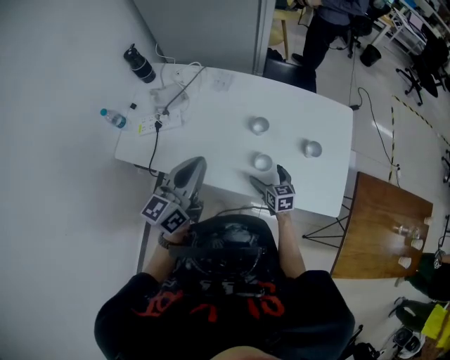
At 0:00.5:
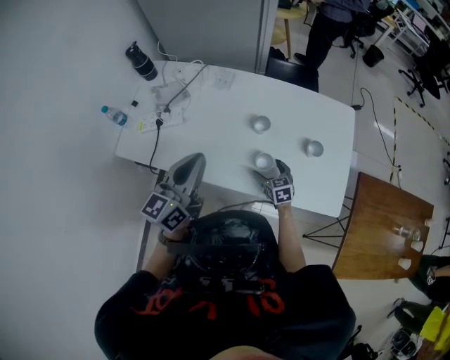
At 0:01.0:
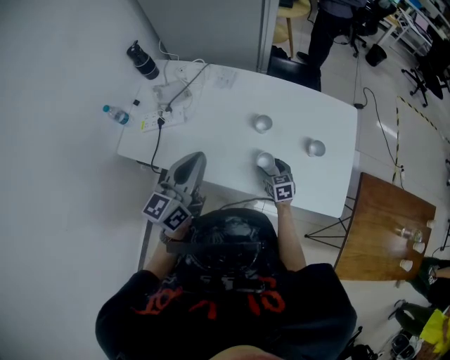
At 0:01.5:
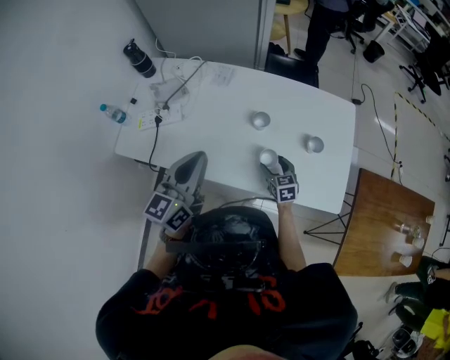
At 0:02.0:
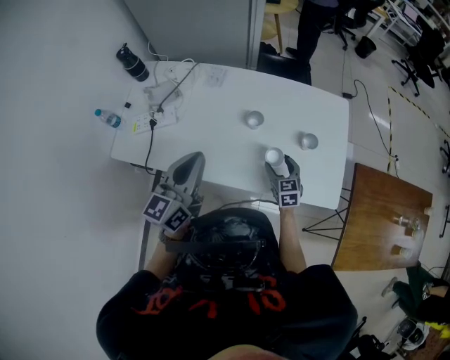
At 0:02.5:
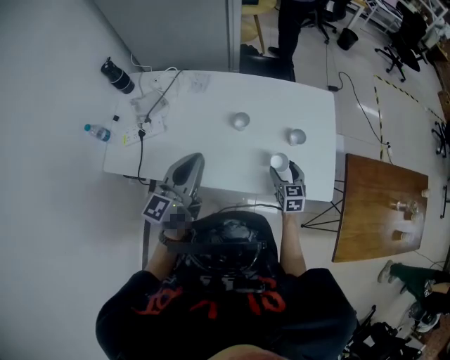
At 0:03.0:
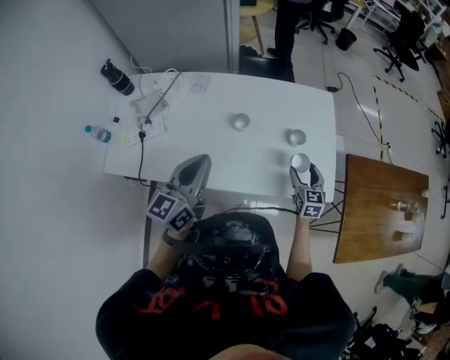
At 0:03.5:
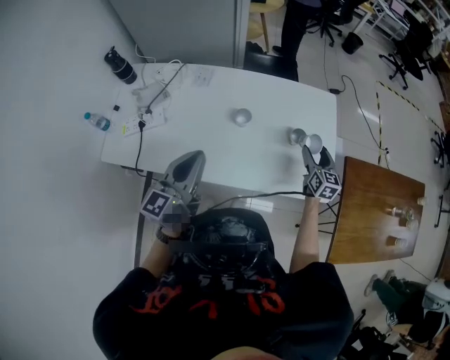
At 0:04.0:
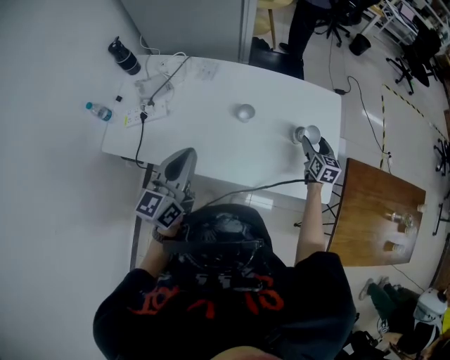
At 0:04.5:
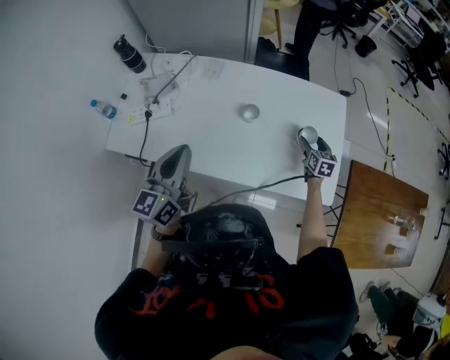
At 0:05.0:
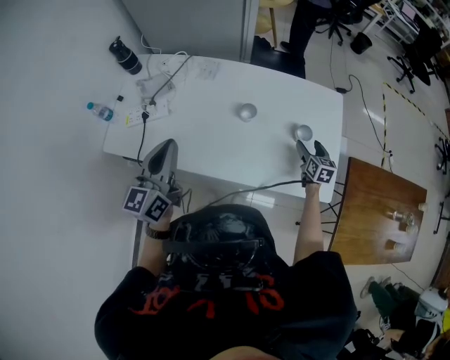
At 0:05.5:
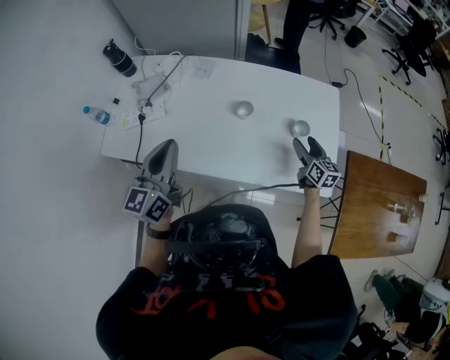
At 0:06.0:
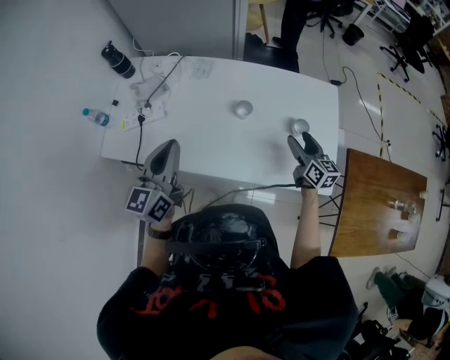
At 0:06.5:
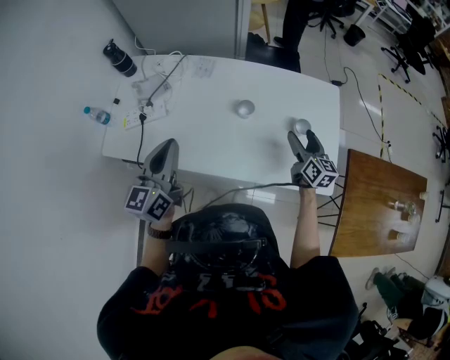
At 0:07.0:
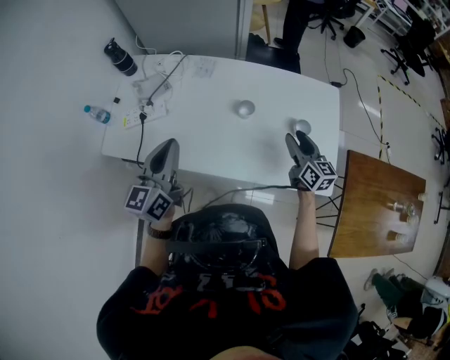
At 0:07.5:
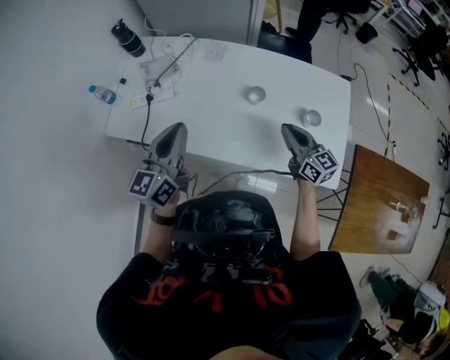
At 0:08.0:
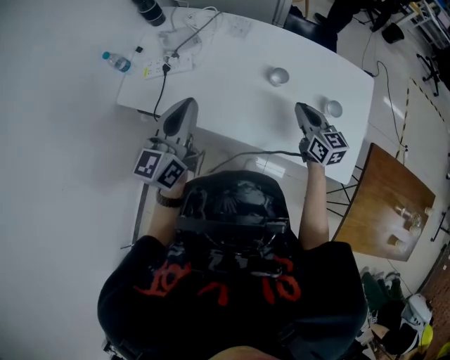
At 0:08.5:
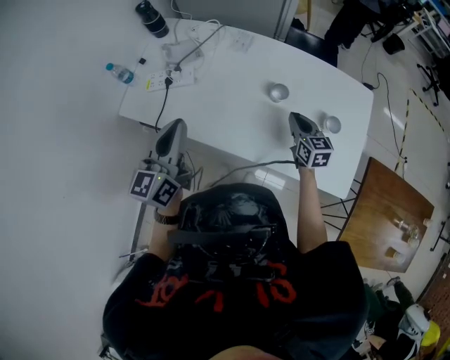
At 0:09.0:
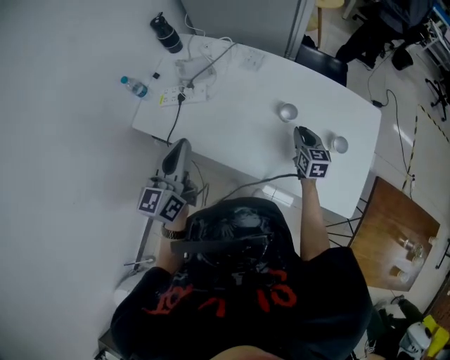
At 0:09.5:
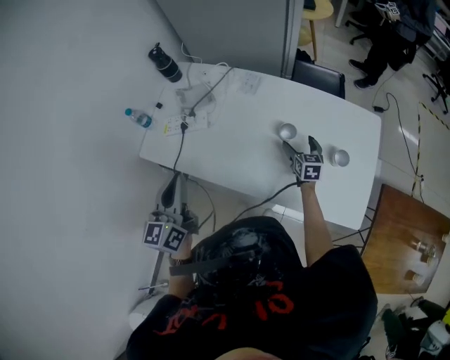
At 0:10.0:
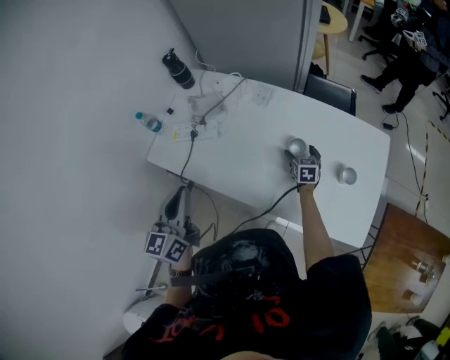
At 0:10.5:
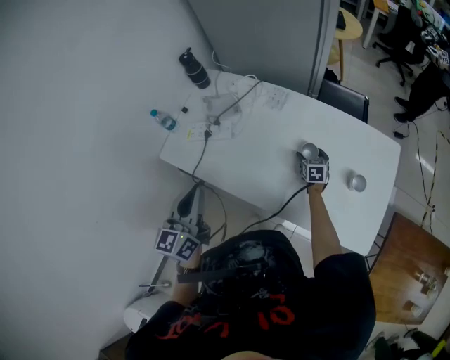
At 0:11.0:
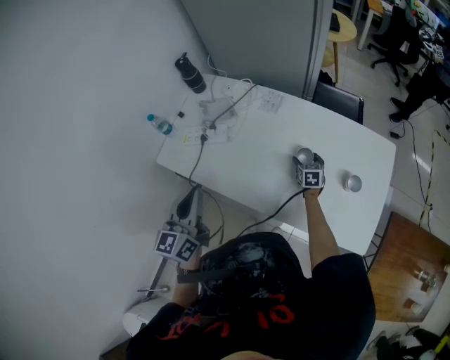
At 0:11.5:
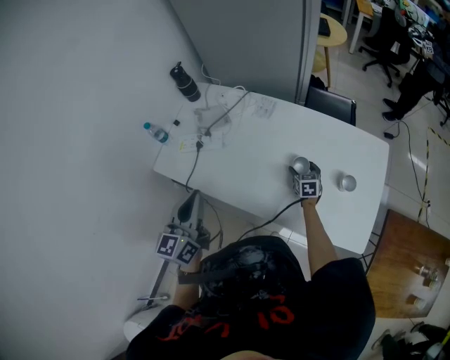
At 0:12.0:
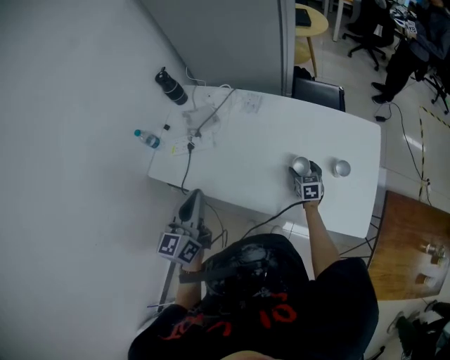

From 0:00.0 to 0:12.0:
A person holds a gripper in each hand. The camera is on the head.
From 0:00.0 to 0:02.0: The right gripper goes approximately 5 cm to the right, and closes up.
From 0:02.0 to 0:04.0: The right gripper shifts roughly 20 cm to the right and forward.
From 0:04.0 to 0:06.0: The right gripper moves to the left and upward, roughly 10 cm, and turns by roughly 20 degrees.
From 0:06.0 to 0:08.0: The right gripper moves to the left, approximately 15 cm, and closes its fingers.
From 0:08.0 to 0:10.0: The left gripper goes about 5 cm to the left; the right gripper is displaced downward and forward by some 25 cm, swivels about 30 degrees, and opens its fingers.
From 0:10.0 to 0:12.0: The right gripper travels backward by about 10 cm.

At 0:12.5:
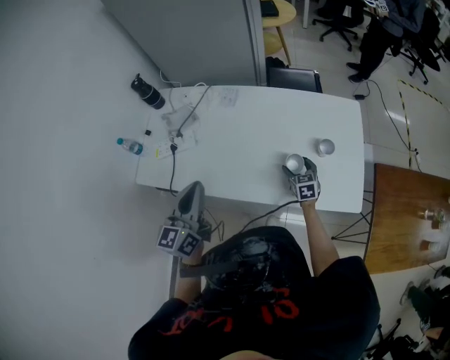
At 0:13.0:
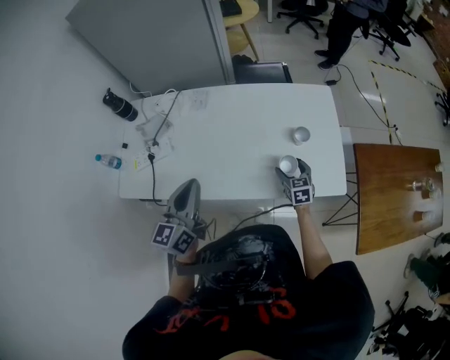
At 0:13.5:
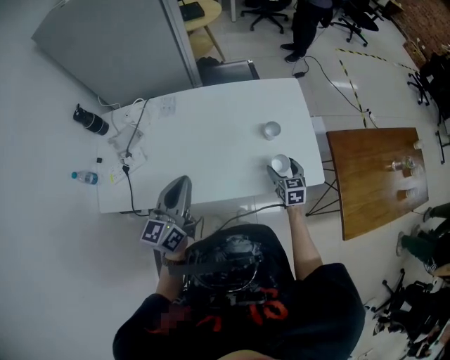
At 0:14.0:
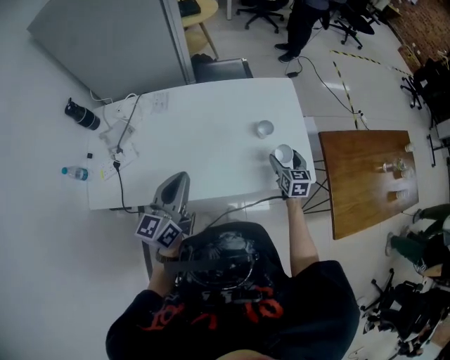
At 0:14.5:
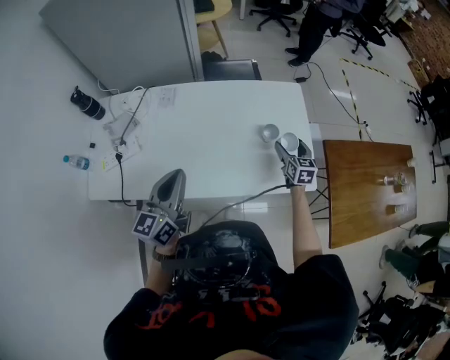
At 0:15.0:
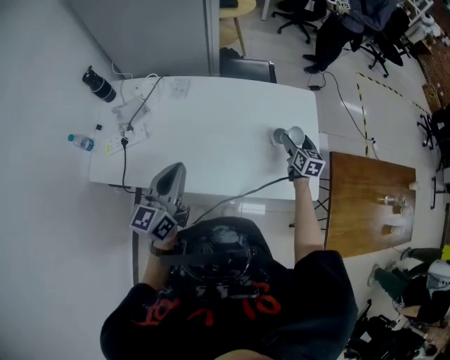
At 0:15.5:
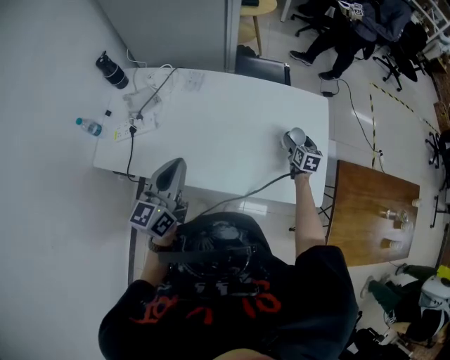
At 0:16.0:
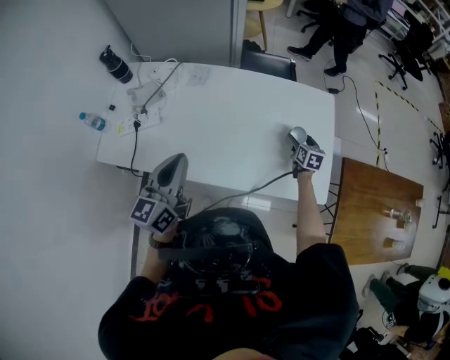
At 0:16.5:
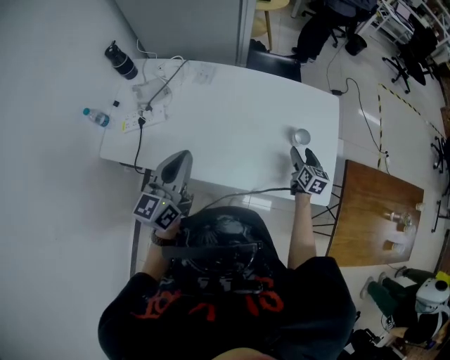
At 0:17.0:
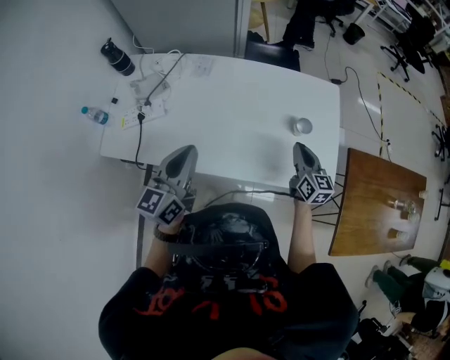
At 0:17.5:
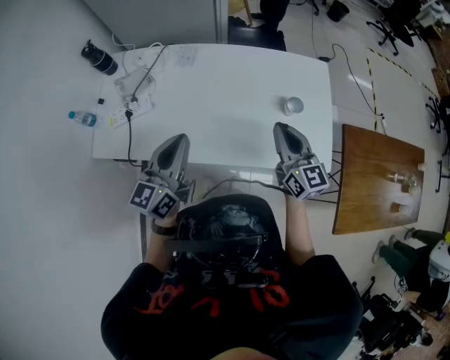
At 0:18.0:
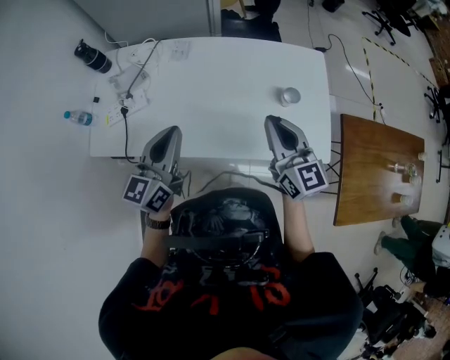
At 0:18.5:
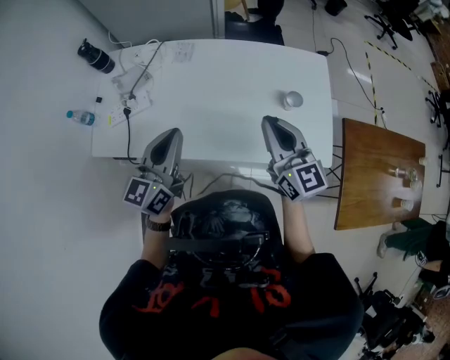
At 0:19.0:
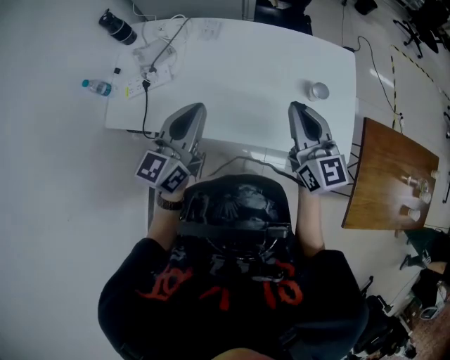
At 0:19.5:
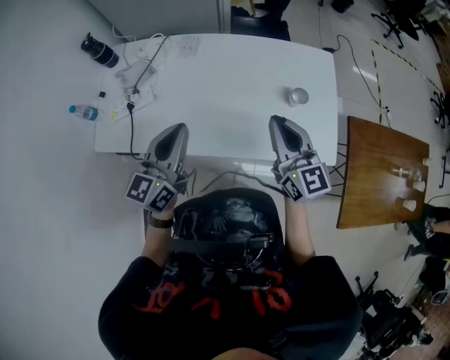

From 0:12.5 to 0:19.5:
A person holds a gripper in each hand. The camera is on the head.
From 0:12.5 to 0:14.5: The left gripper heads to the right, covering roughly 10 cm; the right gripper shifts about 20 cm to the right and upward, and changes its angle by some 20 degrees.
From 0:14.5 to 0:16.0: The right gripper heads downward and forward, covering approximately 10 cm.
From 0:16.0 to 0:17.5: The right gripper travels upward, backward and to the left by roughly 35 cm, tips its fingers upward by some 30 degrees, and closes up.
From 0:17.5 to 0:19.5: The right gripper moves about 5 cm.

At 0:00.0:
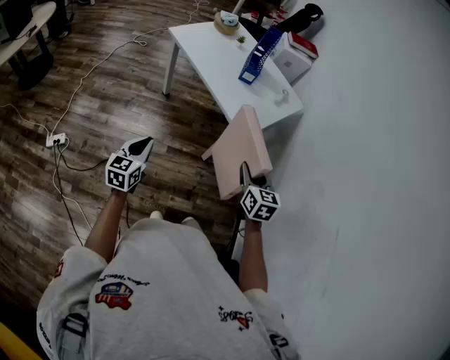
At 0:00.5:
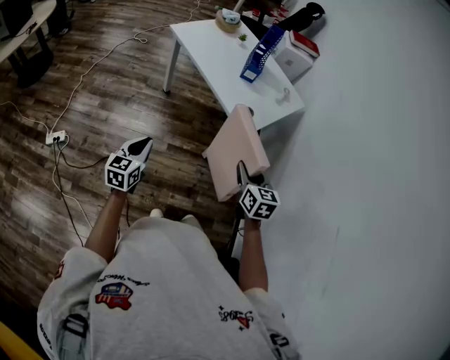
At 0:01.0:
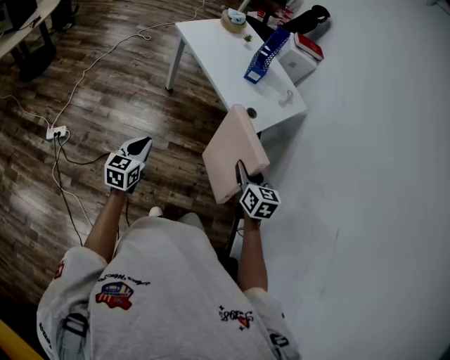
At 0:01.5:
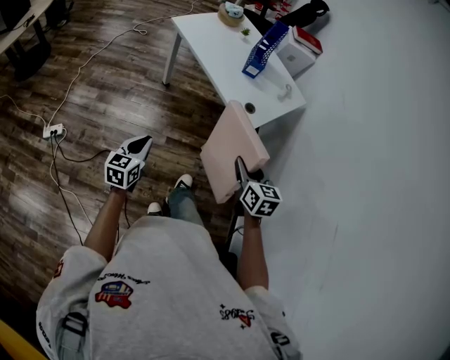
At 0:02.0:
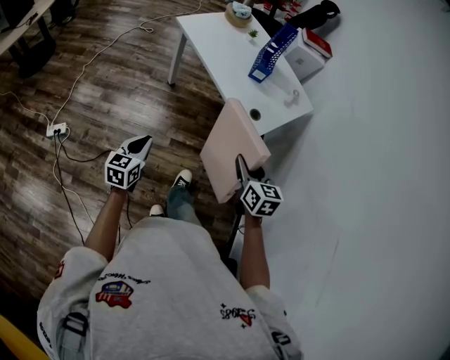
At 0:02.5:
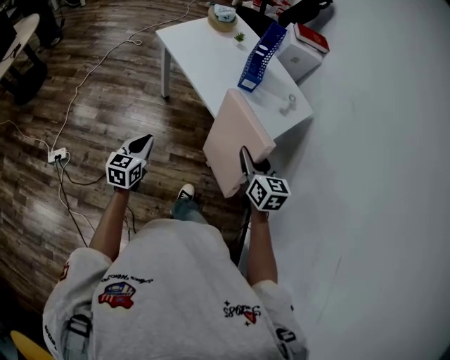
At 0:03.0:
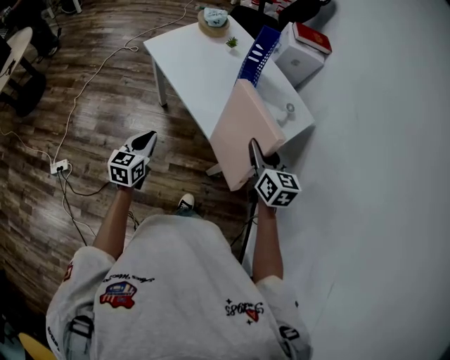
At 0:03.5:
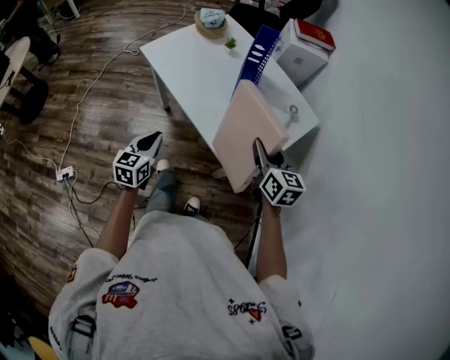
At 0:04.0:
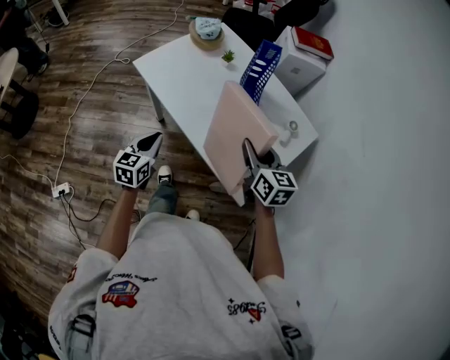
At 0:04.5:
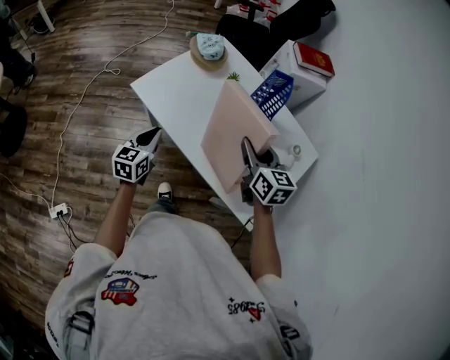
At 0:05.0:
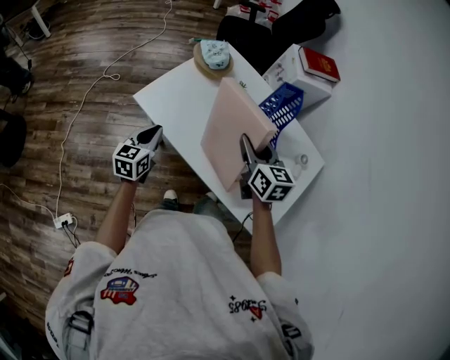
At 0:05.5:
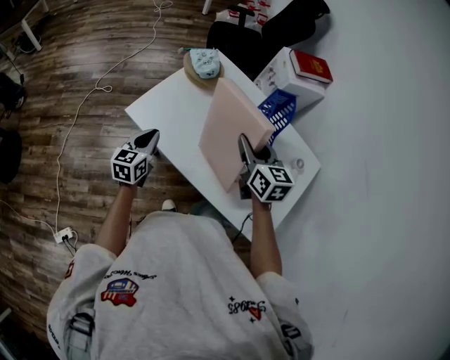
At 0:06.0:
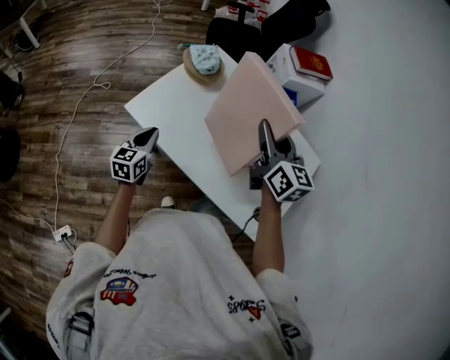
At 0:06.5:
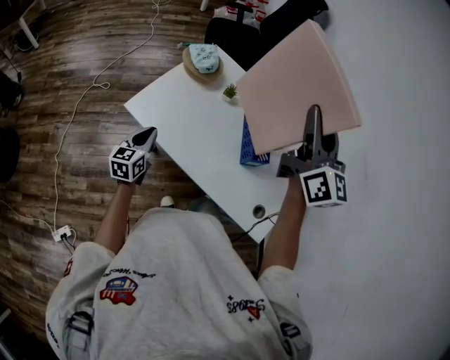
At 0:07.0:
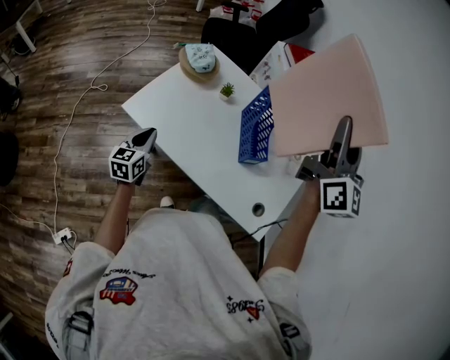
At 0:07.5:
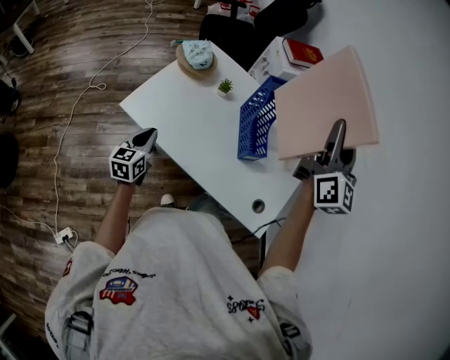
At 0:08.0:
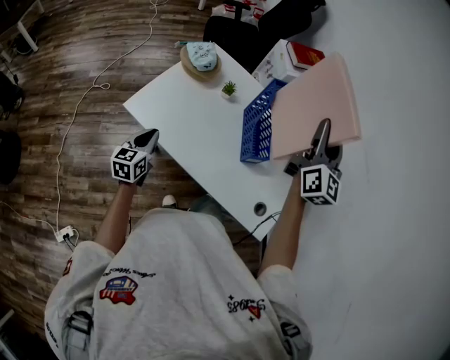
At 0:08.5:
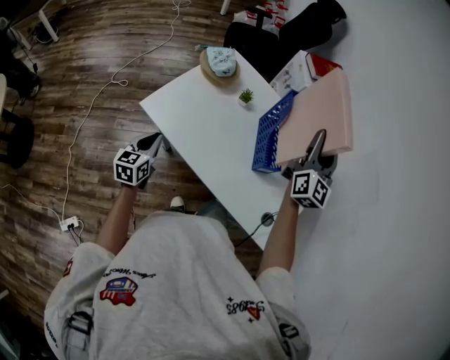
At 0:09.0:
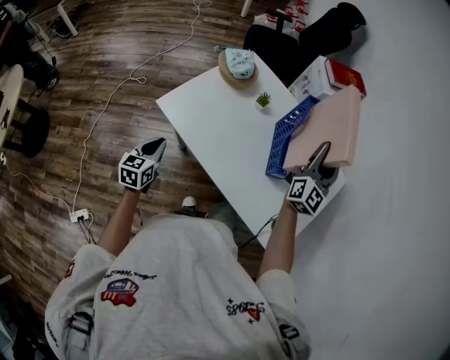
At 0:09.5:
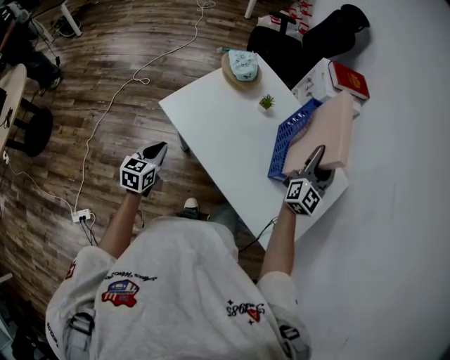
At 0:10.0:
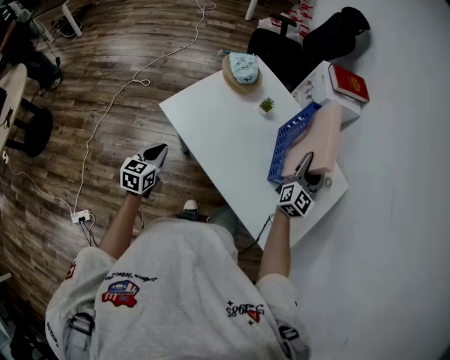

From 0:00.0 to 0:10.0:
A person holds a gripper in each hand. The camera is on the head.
From 0:00.0 to 0:02.0: The right gripper travels to the left and forward by about 10 cm. The left gripper ends up some 5 cm from where it was.
From 0:02.0 to 0:04.0: Both grippers are carried forward, some 40 cm.
From 0:04.0 to 0:06.0: The left gripper is displaced forward and to the left by some 30 cm; the right gripper moves forward, to the left and upward, some 30 cm.
From 0:06.0 to 0:08.0: The right gripper is displaced to the right and upward by about 20 cm, and changes its angle by approximately 30 degrees.
From 0:08.0 to 0:10.0: The left gripper shifts roughly 10 cm backward and to the left. Meanwhile the right gripper heads downward, covering roughly 20 cm.
